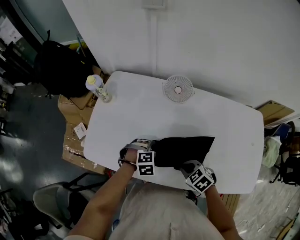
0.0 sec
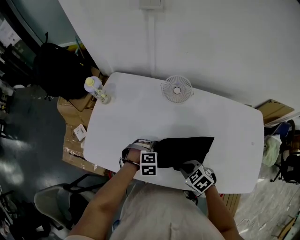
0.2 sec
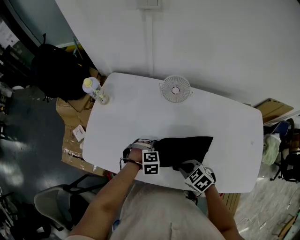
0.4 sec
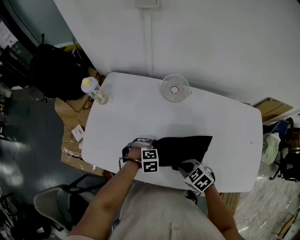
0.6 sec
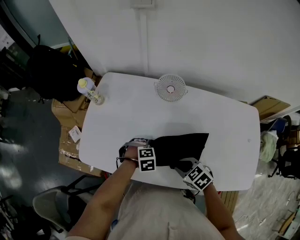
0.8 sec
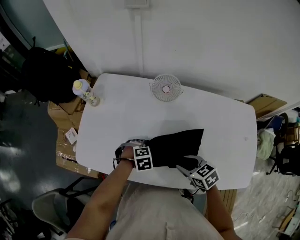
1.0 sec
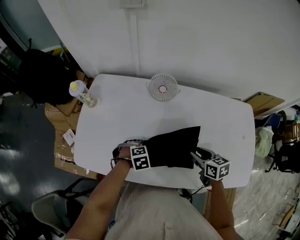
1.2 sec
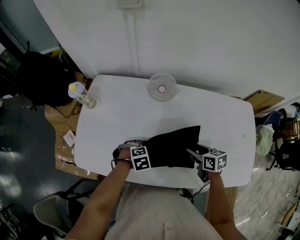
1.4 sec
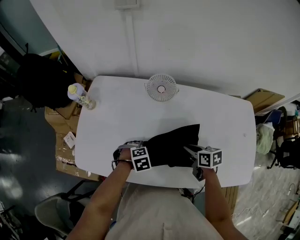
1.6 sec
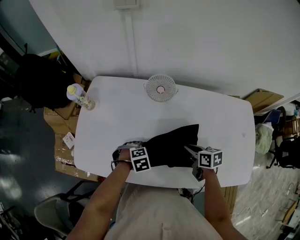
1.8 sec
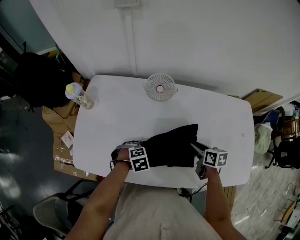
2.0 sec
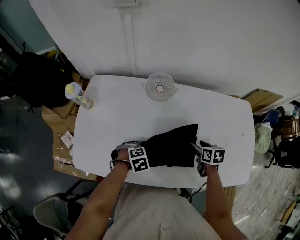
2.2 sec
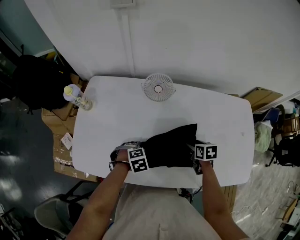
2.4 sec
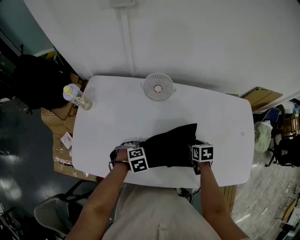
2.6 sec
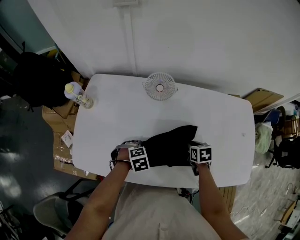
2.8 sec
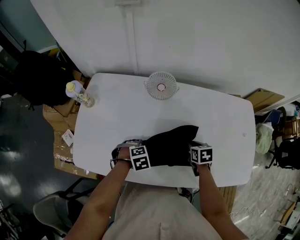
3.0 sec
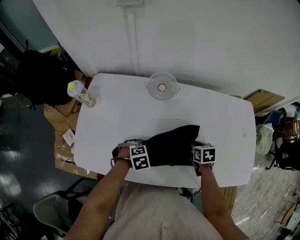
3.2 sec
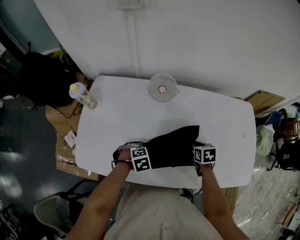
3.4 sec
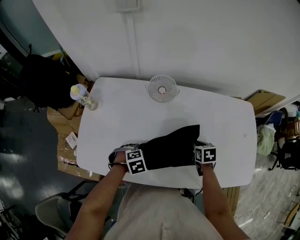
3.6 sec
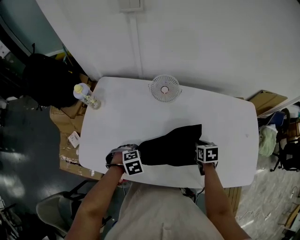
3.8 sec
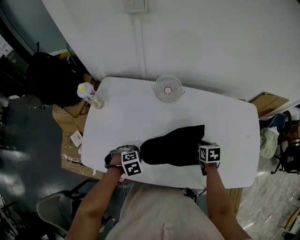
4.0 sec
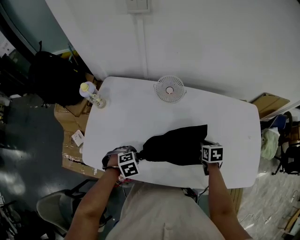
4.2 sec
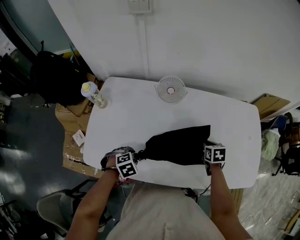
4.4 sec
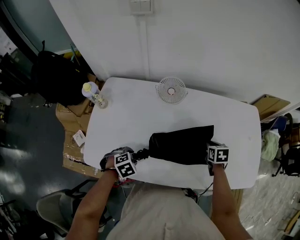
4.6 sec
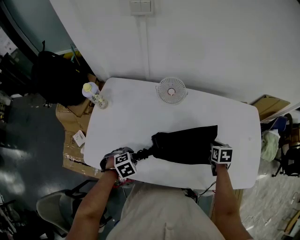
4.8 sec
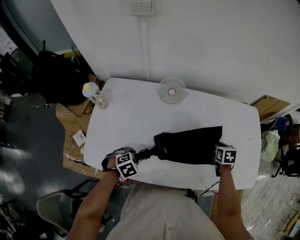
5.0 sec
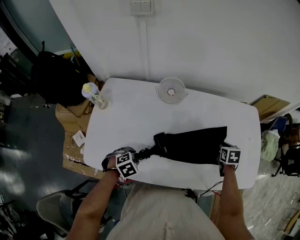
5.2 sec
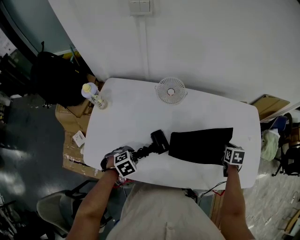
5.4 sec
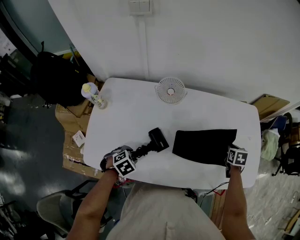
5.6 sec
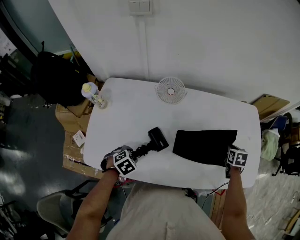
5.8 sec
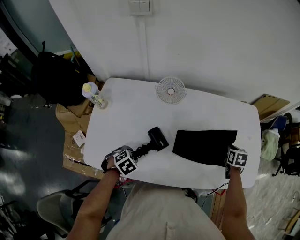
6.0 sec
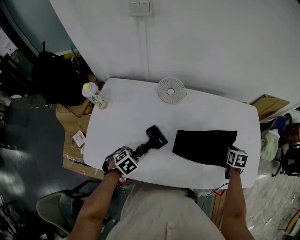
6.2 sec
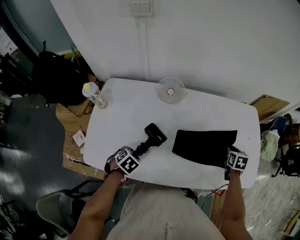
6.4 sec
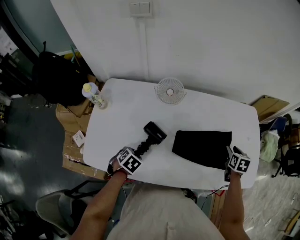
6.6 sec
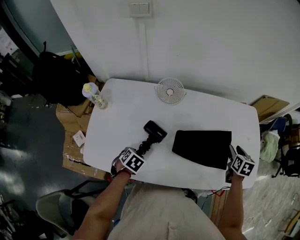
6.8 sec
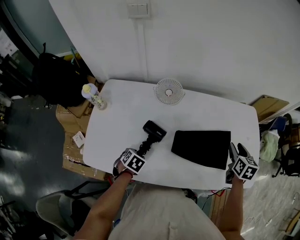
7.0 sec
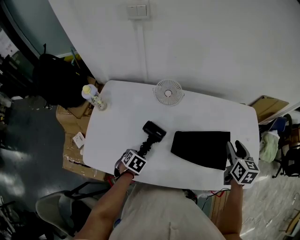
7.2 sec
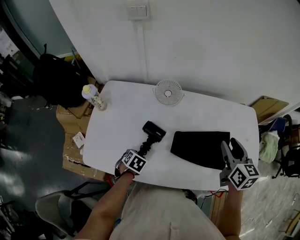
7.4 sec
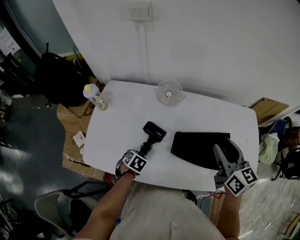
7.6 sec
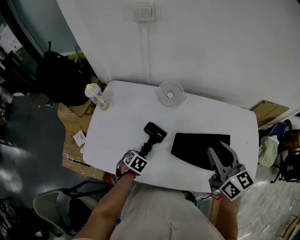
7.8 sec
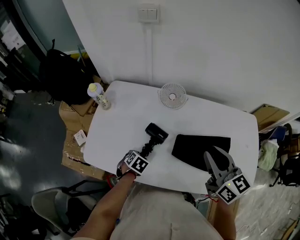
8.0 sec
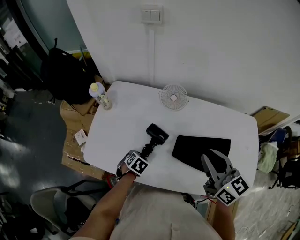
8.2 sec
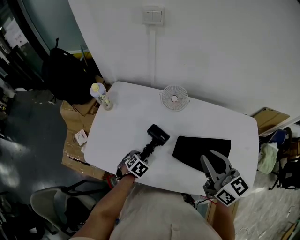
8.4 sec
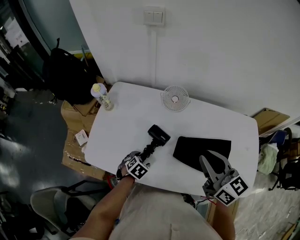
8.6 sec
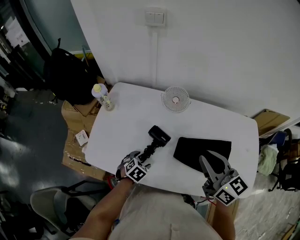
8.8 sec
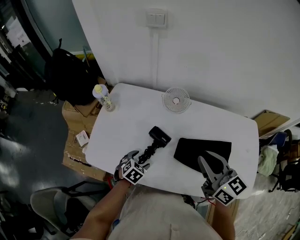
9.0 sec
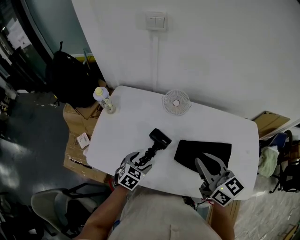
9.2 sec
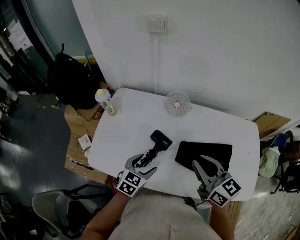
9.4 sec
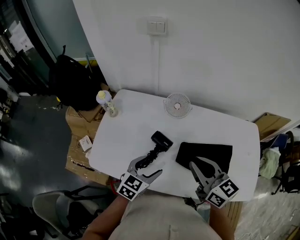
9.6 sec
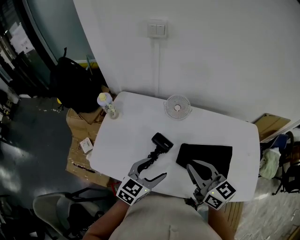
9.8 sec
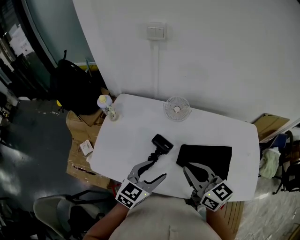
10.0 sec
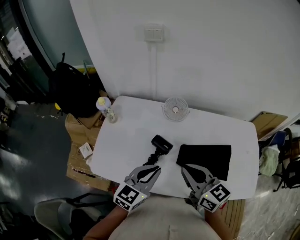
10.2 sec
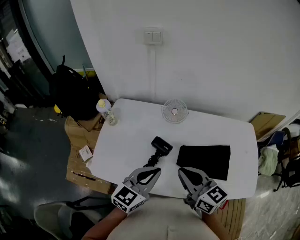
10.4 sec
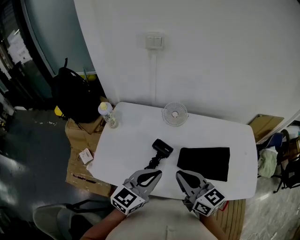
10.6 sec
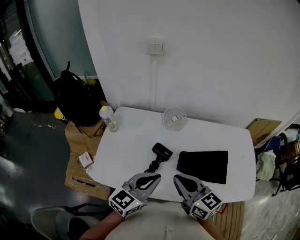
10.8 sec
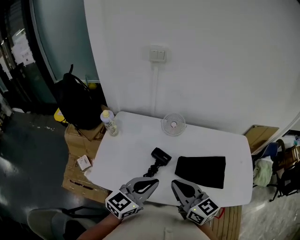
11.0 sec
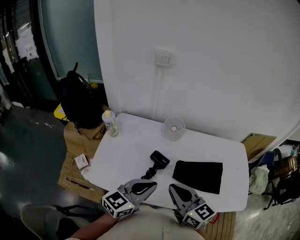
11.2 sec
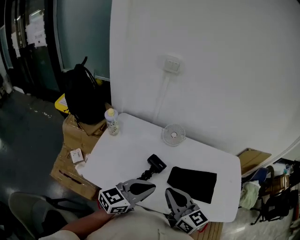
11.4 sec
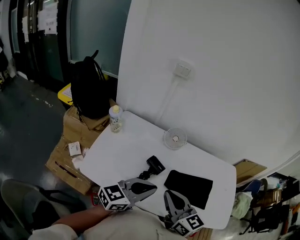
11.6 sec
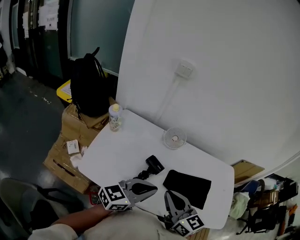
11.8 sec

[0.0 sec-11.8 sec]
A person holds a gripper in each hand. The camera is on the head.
0.0 sec to 1.4 sec: The right gripper ends up approximately 15 cm from where it was, twists some 40 degrees clockwise, seen from behind, and opens its fingers.
1.4 sec to 3.0 sec: The right gripper travels downward by approximately 5 cm, rotates roughly 20 degrees, and closes.
3.0 sec to 4.4 sec: The left gripper moves roughly 10 cm.
4.4 sec to 6.0 sec: The right gripper shifts by some 15 cm.
6.0 sec to 7.4 sec: The left gripper swivels roughly 20 degrees, while the right gripper goes about 20 cm upward, points its fingers about 30 degrees further upward, and opens its fingers.
7.4 sec to 8.8 sec: The left gripper opens; the right gripper moves about 15 cm, swivels some 30 degrees, and closes up.
8.8 sec to 10.4 sec: The right gripper is displaced to the left by approximately 10 cm. Meanwhile the left gripper heads upward, covering some 25 cm, tilts its fingers about 50 degrees upward, and closes.
10.4 sec to 11.8 sec: The left gripper rotates approximately 20 degrees. Meanwhile the right gripper ends up some 5 cm from where it was.

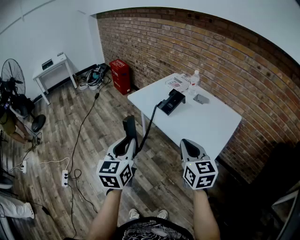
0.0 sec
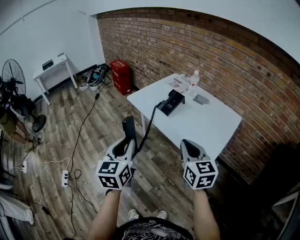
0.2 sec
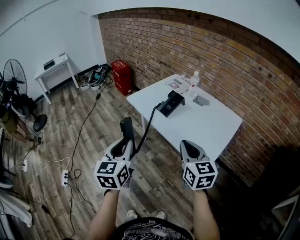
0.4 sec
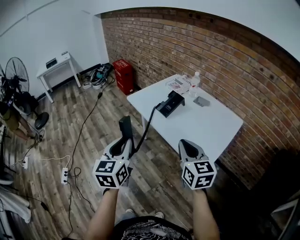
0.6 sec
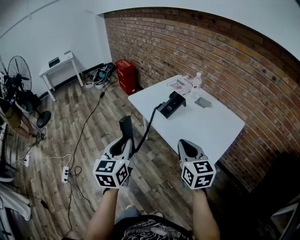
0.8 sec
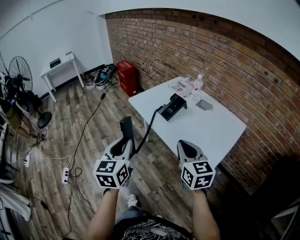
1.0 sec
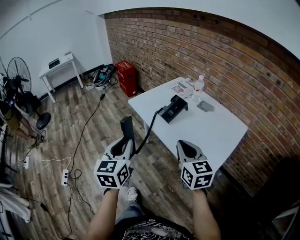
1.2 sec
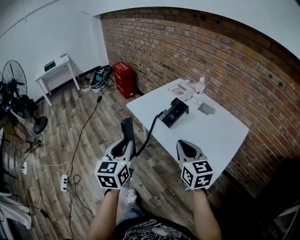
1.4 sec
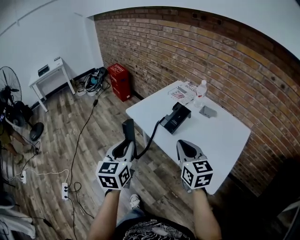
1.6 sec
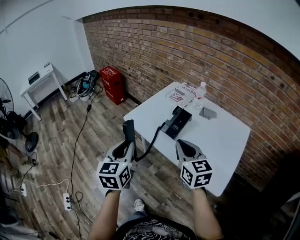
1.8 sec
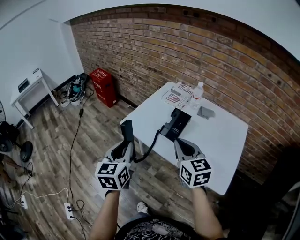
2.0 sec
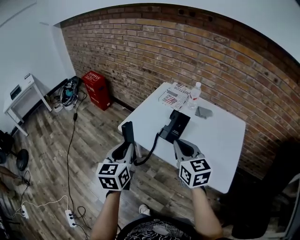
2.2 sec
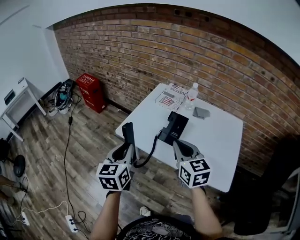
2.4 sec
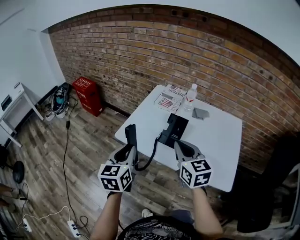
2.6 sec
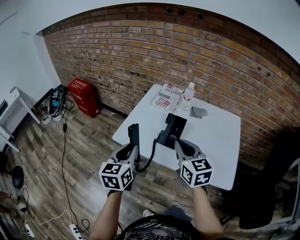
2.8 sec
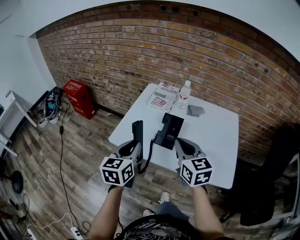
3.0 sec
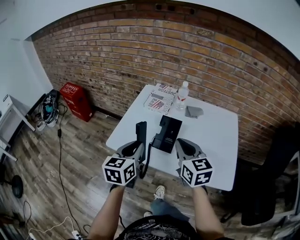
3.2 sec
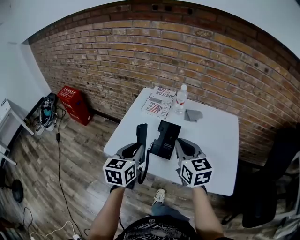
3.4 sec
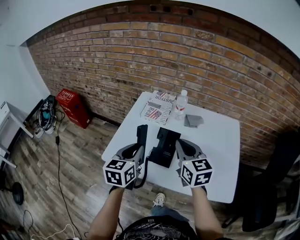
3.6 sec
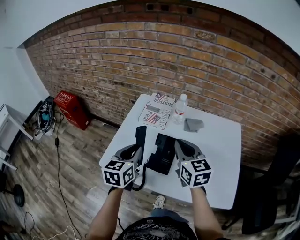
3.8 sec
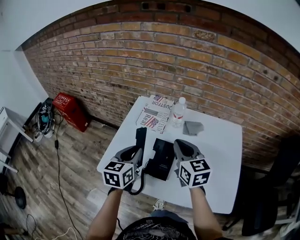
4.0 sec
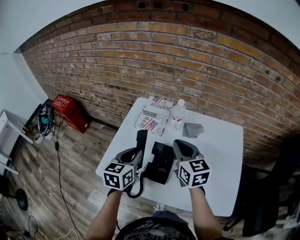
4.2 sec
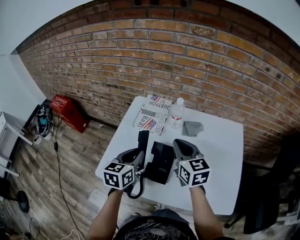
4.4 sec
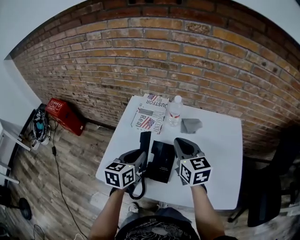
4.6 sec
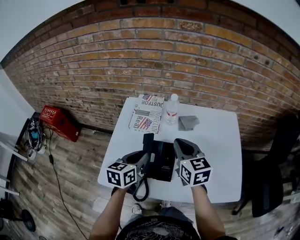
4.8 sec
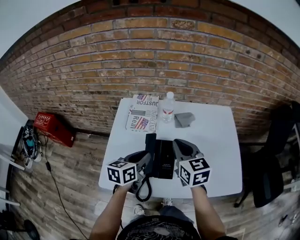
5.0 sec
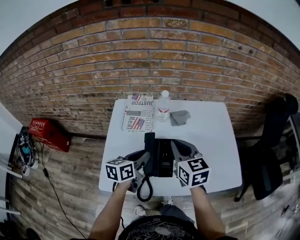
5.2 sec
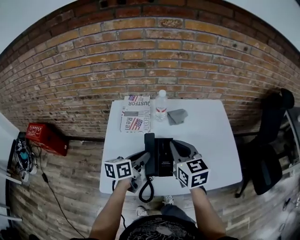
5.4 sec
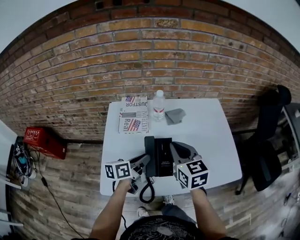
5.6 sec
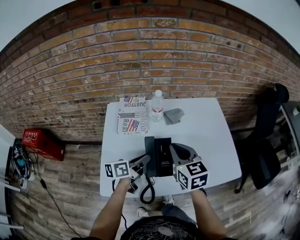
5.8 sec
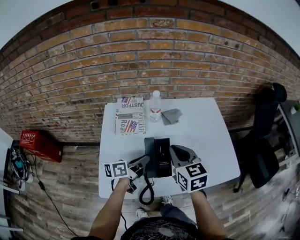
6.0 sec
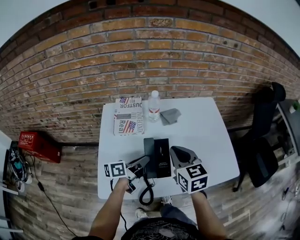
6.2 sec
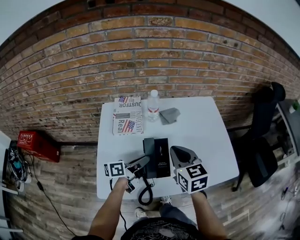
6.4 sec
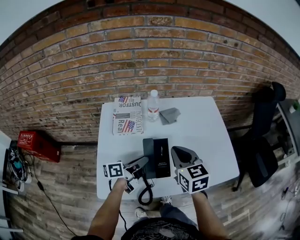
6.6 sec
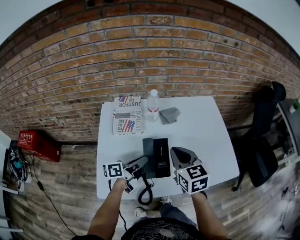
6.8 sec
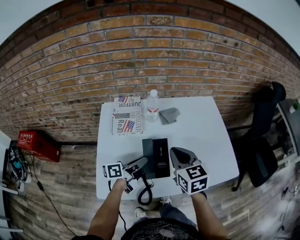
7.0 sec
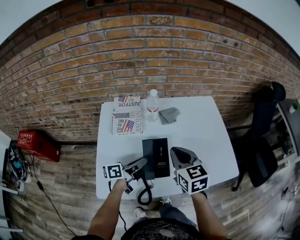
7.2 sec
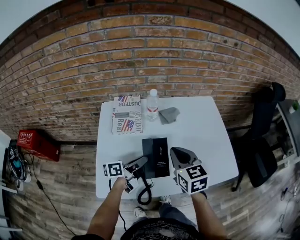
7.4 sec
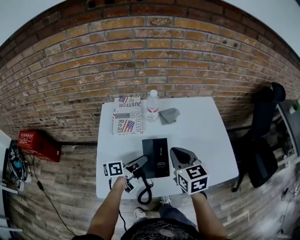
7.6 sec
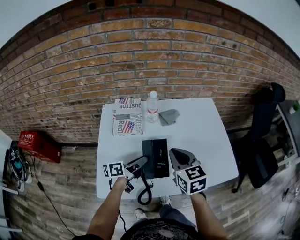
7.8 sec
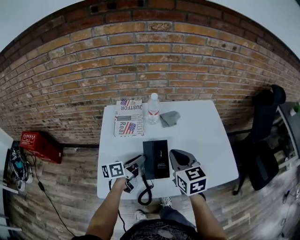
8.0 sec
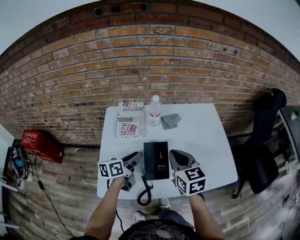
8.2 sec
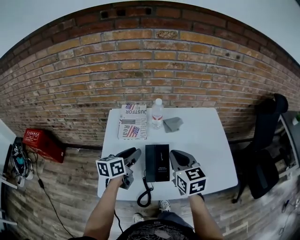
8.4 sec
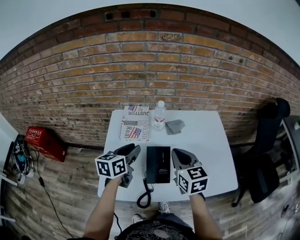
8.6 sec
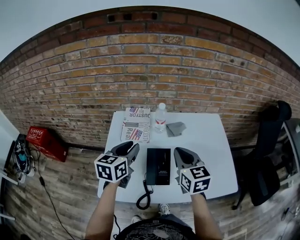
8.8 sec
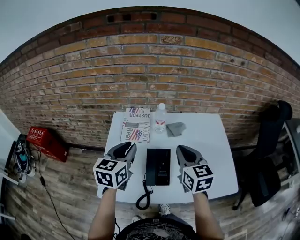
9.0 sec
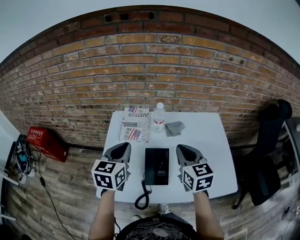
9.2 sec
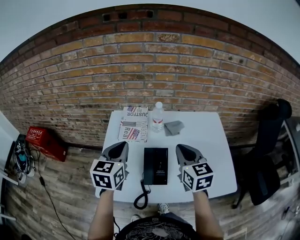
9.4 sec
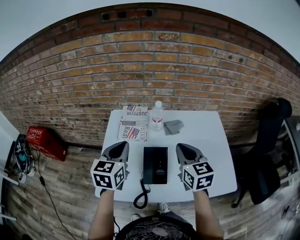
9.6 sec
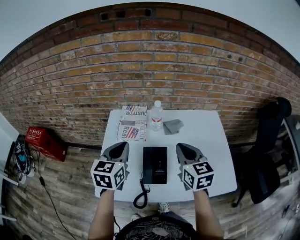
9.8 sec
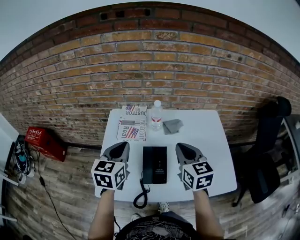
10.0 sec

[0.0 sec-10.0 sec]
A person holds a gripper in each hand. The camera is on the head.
0.0 sec to 1.4 sec: Both grippers move forward, some 10 cm.
1.4 sec to 2.8 sec: The right gripper ends up approximately 20 cm from where it was, and turns by approximately 20 degrees. Meanwhile the left gripper changes place by some 25 cm, and turns by roughly 30 degrees.
2.8 sec to 4.2 sec: Both grippers move forward, roughly 20 cm.
4.2 sec to 5.8 sec: The left gripper shifts about 10 cm downward, and rotates roughly 50 degrees. The right gripper changes place by roughly 5 cm, and rotates about 20 degrees.
5.8 sec to 7.2 sec: The grippers stay close to where they were, moving slightly.
7.2 sec to 8.6 sec: The left gripper travels upward and to the left by some 15 cm, and turns by about 50 degrees.
8.6 sec to 10.0 sec: The left gripper goes approximately 5 cm upward, changes its angle by about 20 degrees, and closes its fingers.

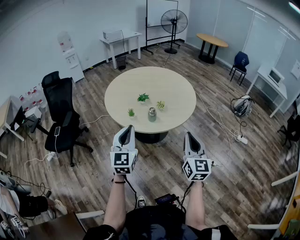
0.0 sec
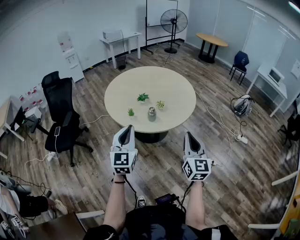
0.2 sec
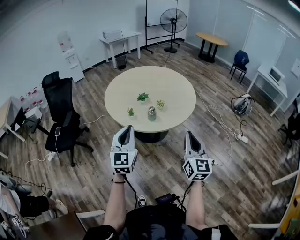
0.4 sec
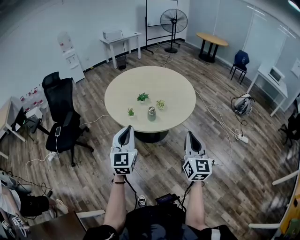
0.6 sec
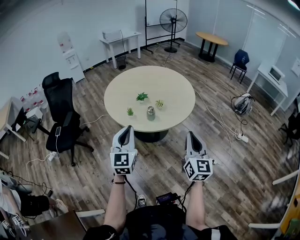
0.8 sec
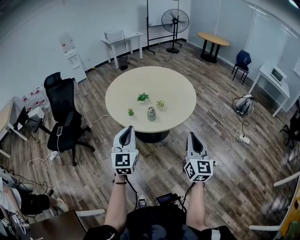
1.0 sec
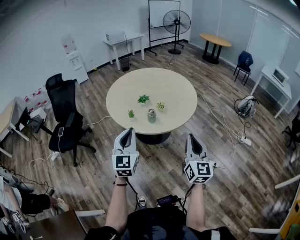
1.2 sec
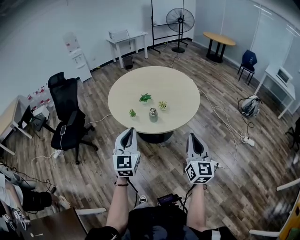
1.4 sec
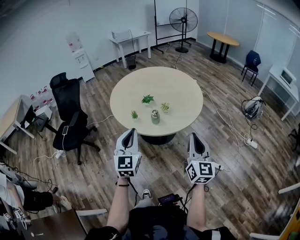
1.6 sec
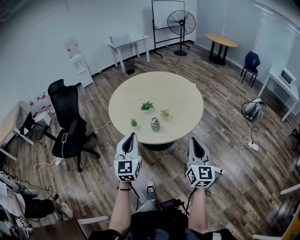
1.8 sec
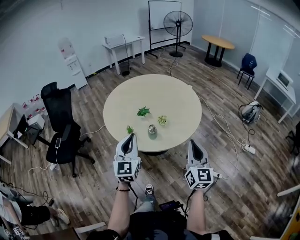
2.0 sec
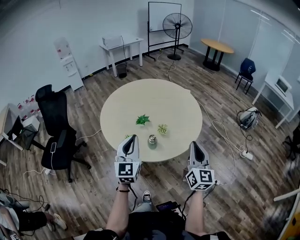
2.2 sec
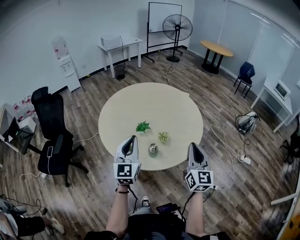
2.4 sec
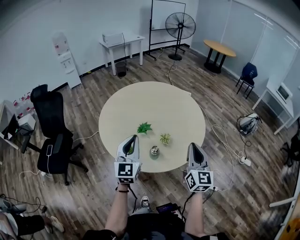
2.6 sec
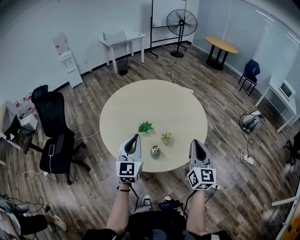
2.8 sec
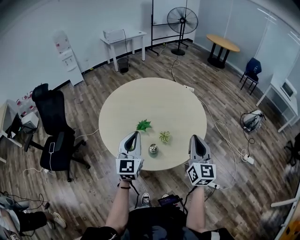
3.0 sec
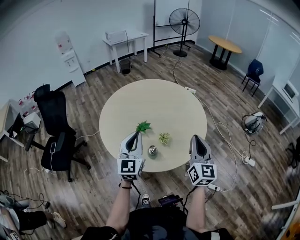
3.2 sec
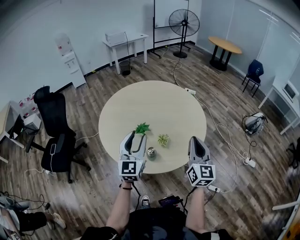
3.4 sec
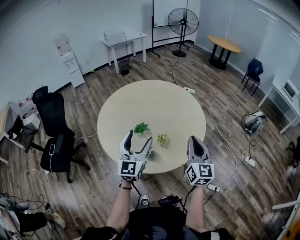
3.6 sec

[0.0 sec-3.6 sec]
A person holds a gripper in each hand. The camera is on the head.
0.0 sec to 1.8 sec: The two grippers go roughly 5 cm forward.
1.8 sec to 3.6 sec: The two grippers go some 25 cm forward. The left gripper opens its fingers.
